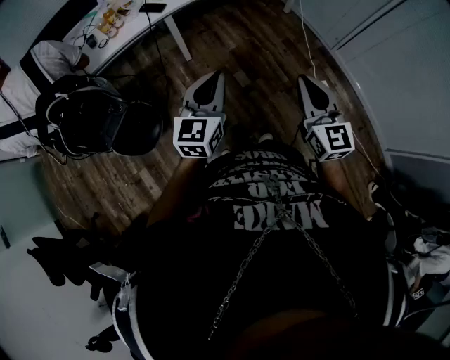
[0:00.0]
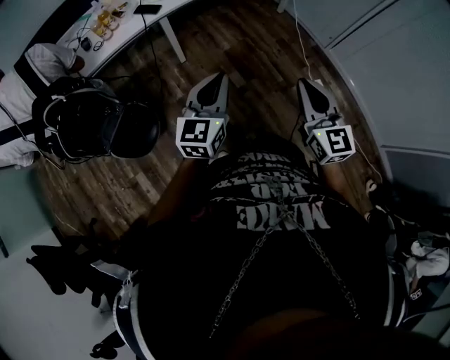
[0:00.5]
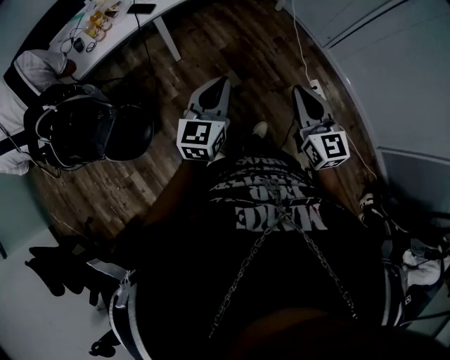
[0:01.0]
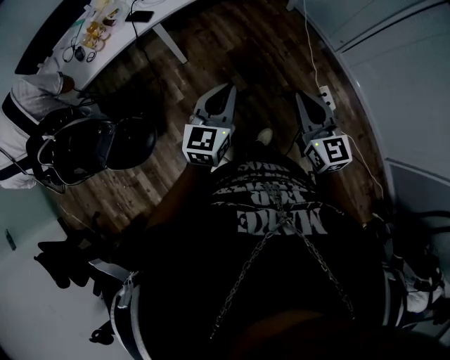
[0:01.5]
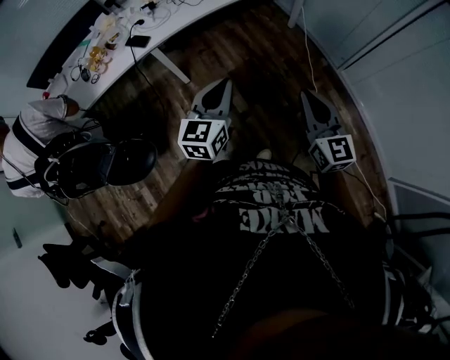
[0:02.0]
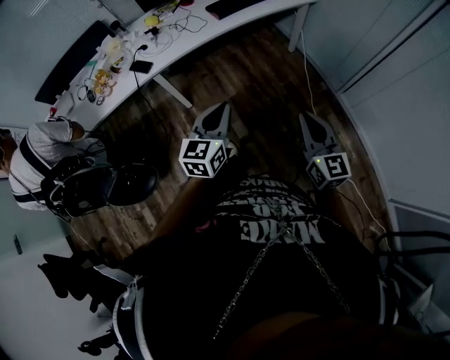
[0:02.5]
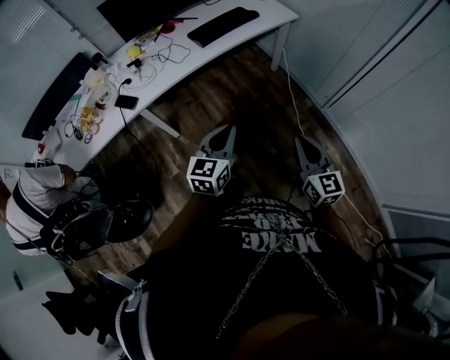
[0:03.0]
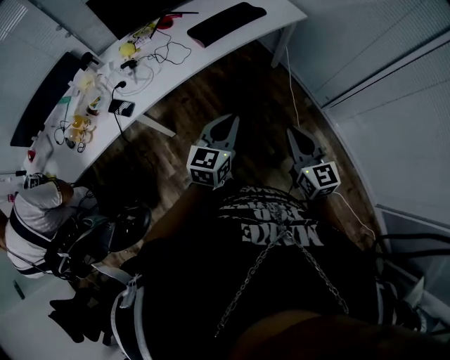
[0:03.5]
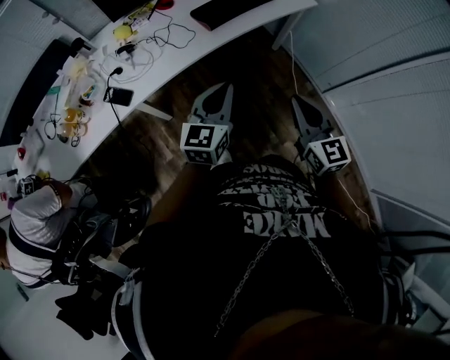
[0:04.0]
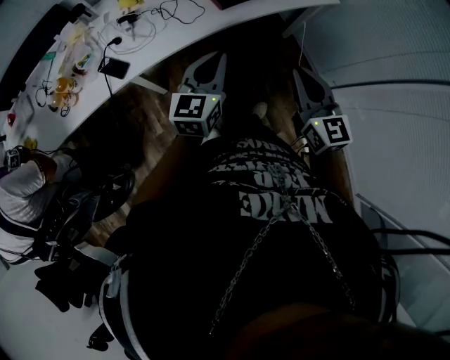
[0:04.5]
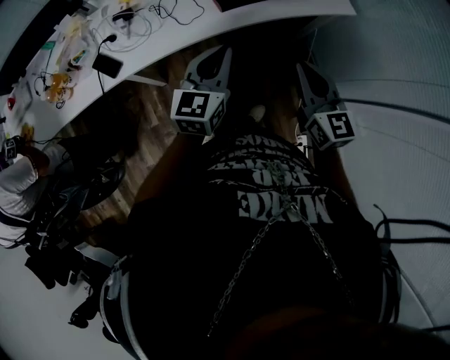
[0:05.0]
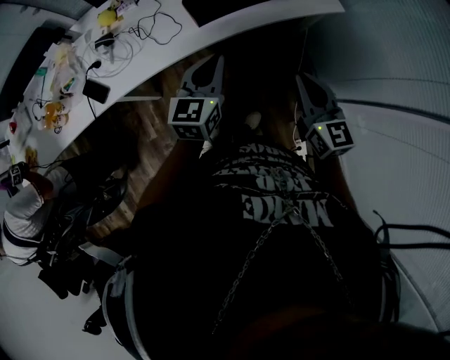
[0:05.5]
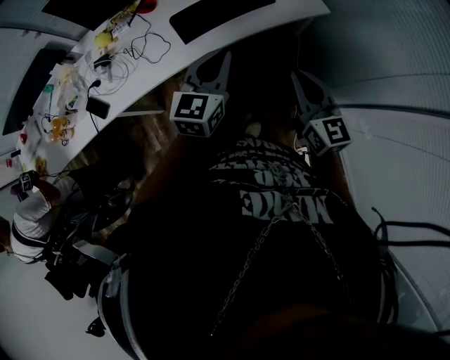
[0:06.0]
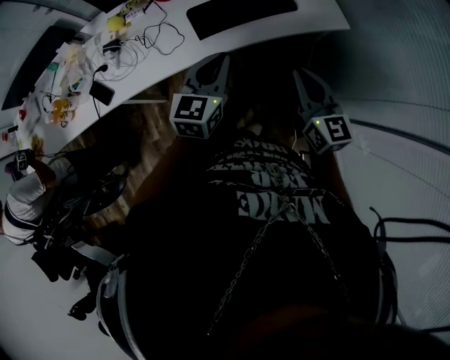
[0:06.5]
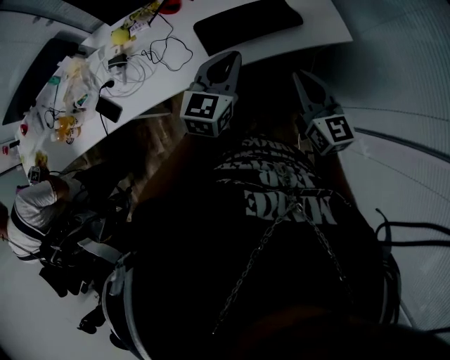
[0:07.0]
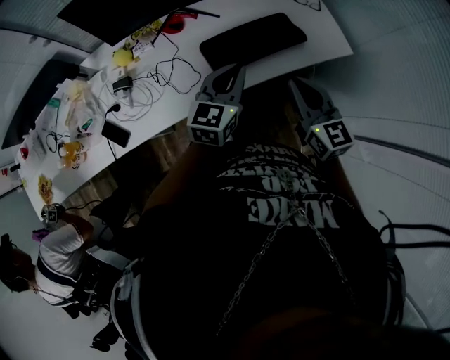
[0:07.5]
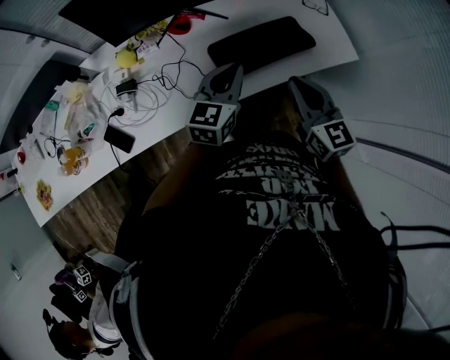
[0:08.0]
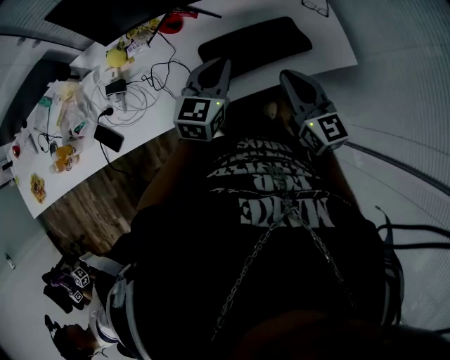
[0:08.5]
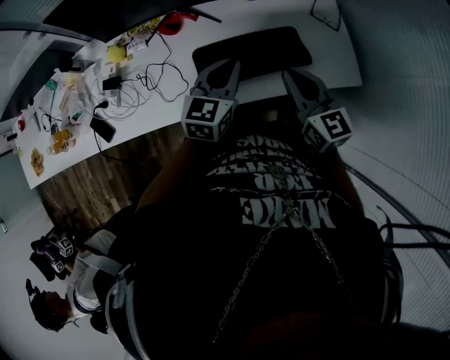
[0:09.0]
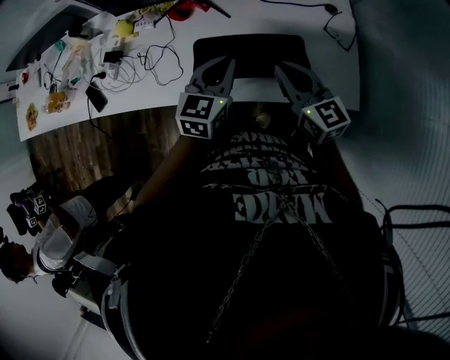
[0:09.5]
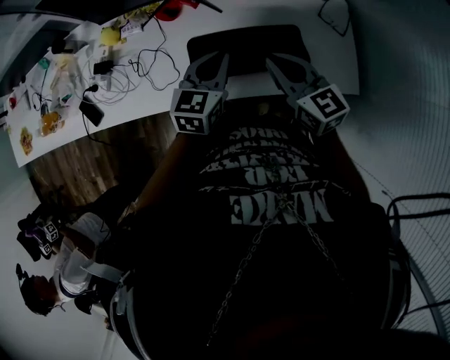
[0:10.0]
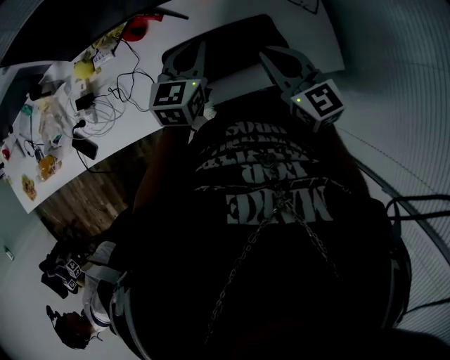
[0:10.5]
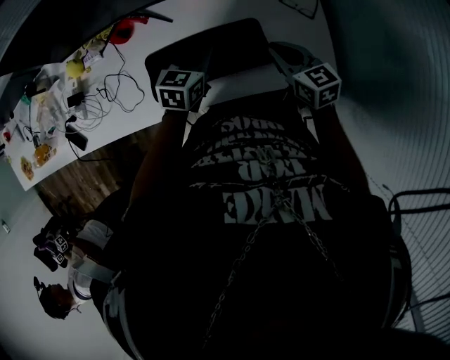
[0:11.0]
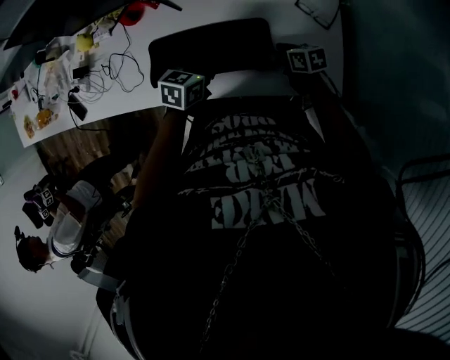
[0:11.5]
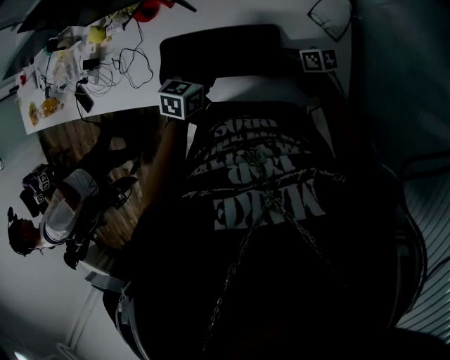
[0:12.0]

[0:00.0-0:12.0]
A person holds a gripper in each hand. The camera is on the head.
0:00.0 to 0:02.0: The grippers both shift forward and to the right by roughly 30 cm.
0:02.0 to 0:04.0: Both grippers move forward, about 30 cm.
0:04.0 to 0:06.0: Both grippers move forward and to the right, roughly 30 cm.
0:06.0 to 0:08.0: The grippers both shift forward, to the left and downward by some 30 cm.
0:08.0 to 0:10.0: The left gripper moves some 15 cm. Meanwhile the right gripper moves about 15 cm, and changes its angle by about 30 degrees.
0:10.0 to 0:12.0: The left gripper shifts some 15 cm downward and to the right, and turns by some 20 degrees. The right gripper heads downward and to the right, covering some 35 cm, changes its angle by roughly 50 degrees, and opens, then closes once more.

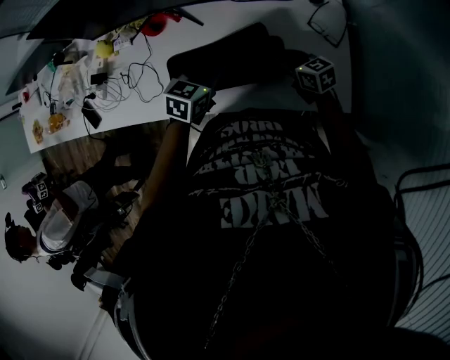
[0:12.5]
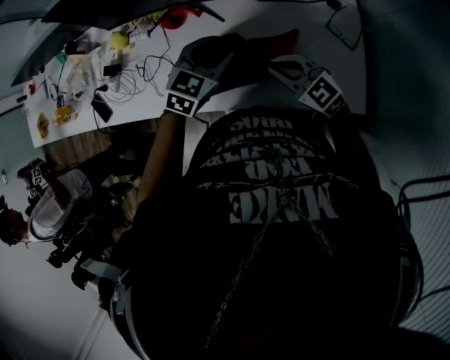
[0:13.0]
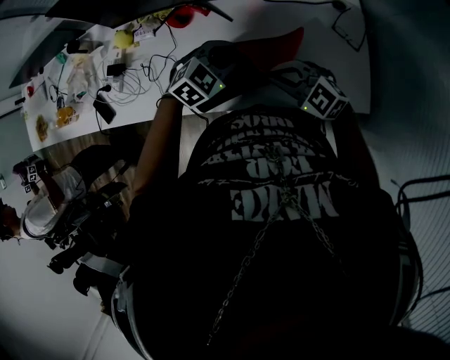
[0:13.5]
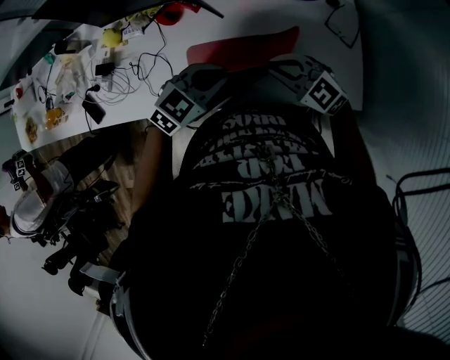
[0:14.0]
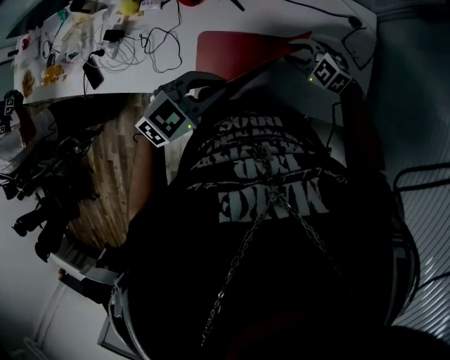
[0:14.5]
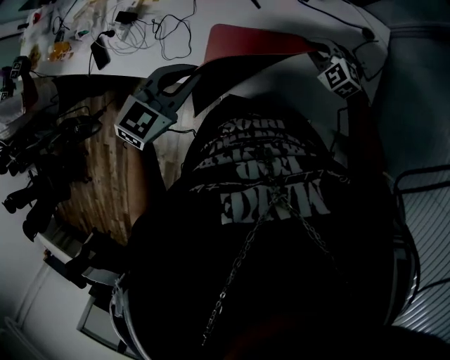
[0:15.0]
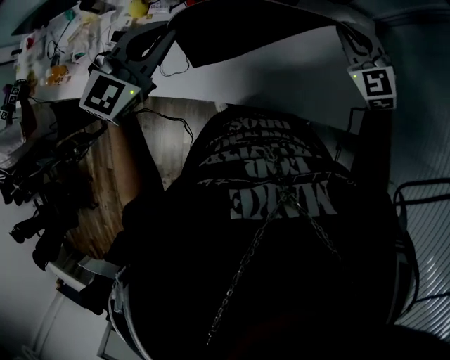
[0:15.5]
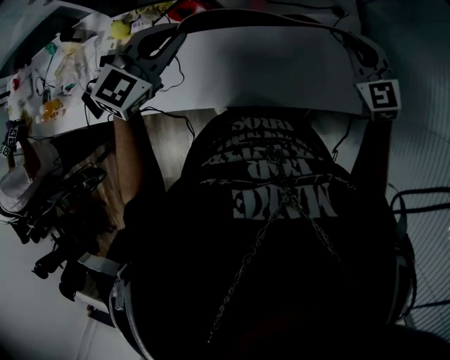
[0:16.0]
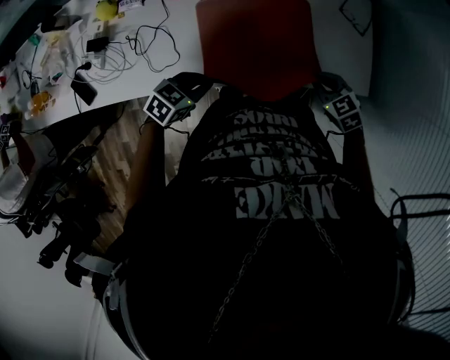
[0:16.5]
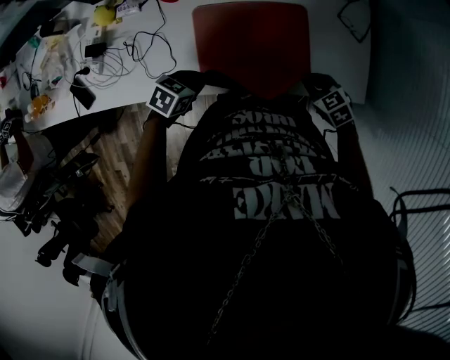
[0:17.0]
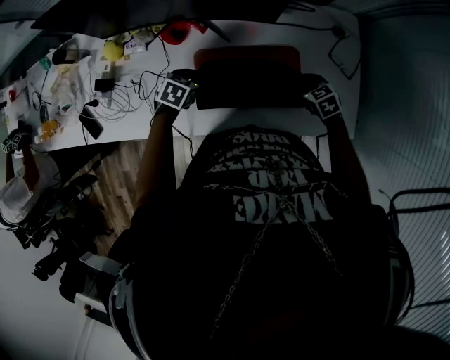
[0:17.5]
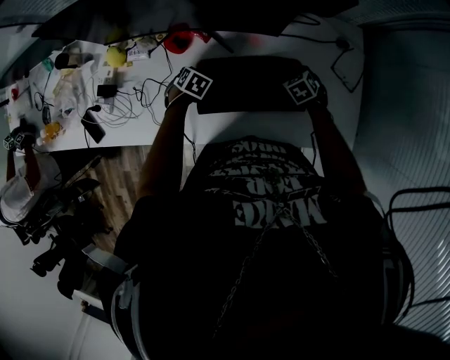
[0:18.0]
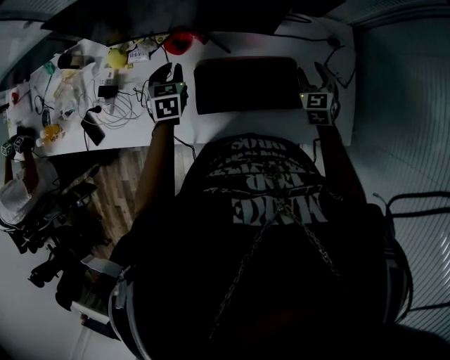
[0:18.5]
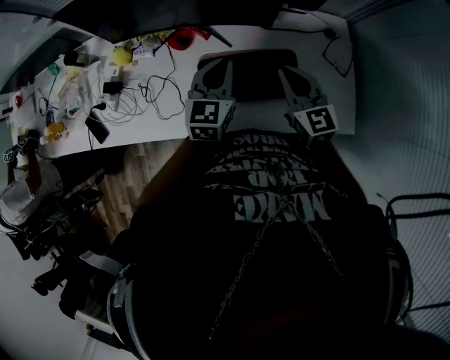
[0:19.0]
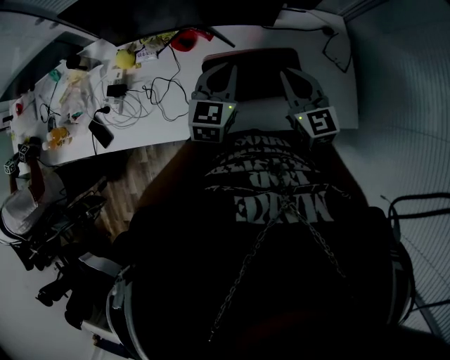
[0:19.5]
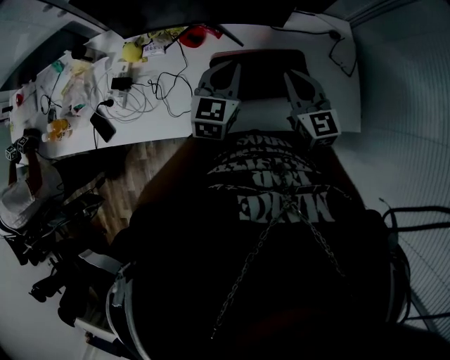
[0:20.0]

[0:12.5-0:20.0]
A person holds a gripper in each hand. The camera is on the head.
0:12.5 to 0:14.5: The left gripper swings up and down, some 10 cm each way, with 2 reversals, changes its angle by about 30 degrees, and opens, then closes once more. The right gripper reaches some 10 cm upward, then returns, twists approximately 50 degrees counterclockwise, seen from behind, and opens its fingers.
0:14.5 to 0:16.5: The right gripper moves roughly 20 cm upward and comes back, rotates approximately 40 degrees, and closes its fingers. The left gripper heads downward, covering approximately 15 cm, and changes its angle by approximately 30 degrees.
0:16.5 to 0:18.0: The right gripper moves approximately 25 cm. The left gripper shifts by about 25 cm, and tilts its fingers some 30 degrees downward.
0:18.0 to 0:20.0: Both grippers move upward, some 30 cm. The left gripper tilts its fingers approximately 60 degrees upward. Meanwhile the right gripper tips its fingers upward by approximately 50 degrees, and opens, then closes once more.

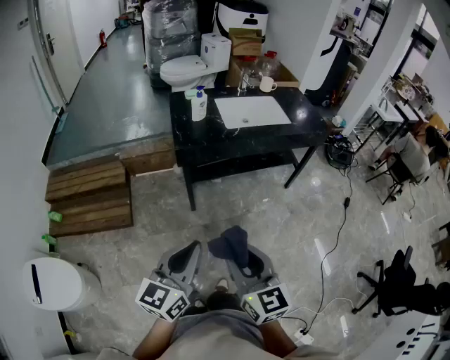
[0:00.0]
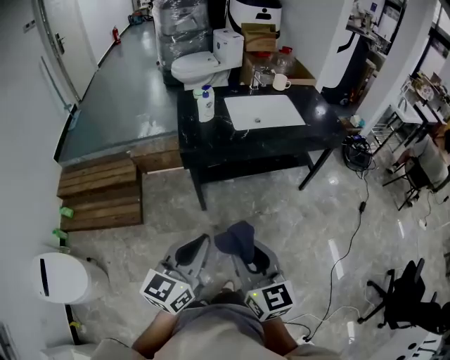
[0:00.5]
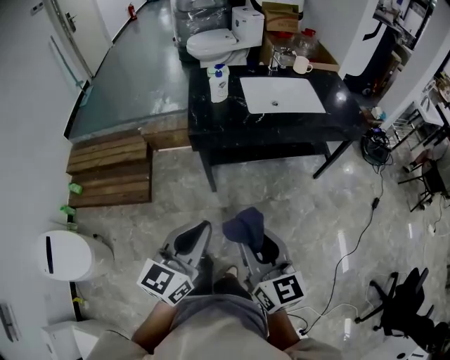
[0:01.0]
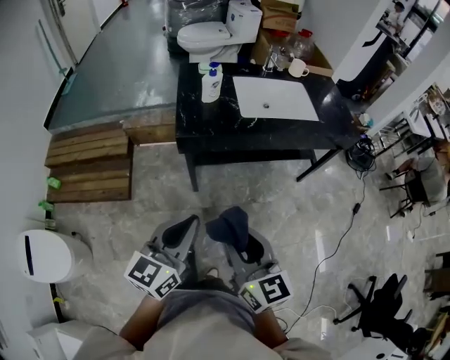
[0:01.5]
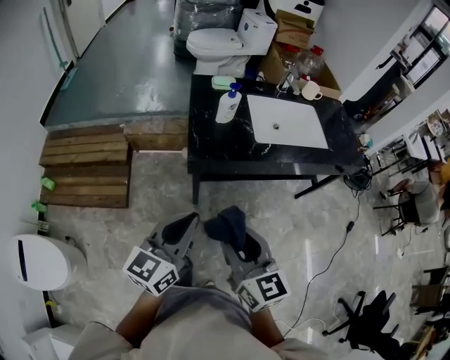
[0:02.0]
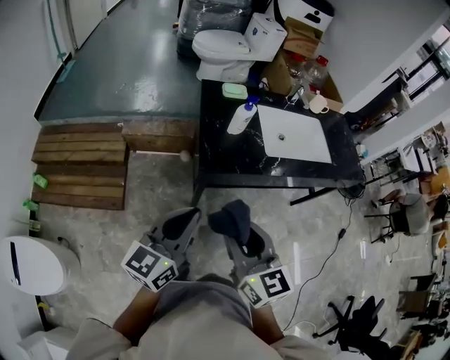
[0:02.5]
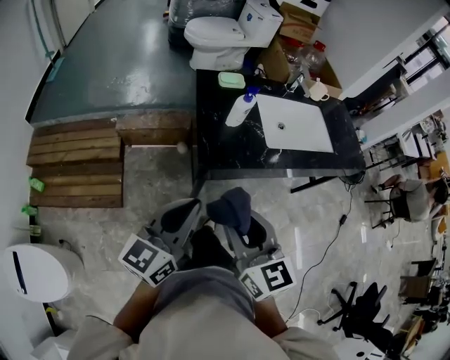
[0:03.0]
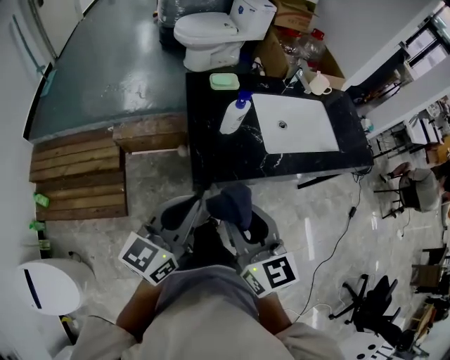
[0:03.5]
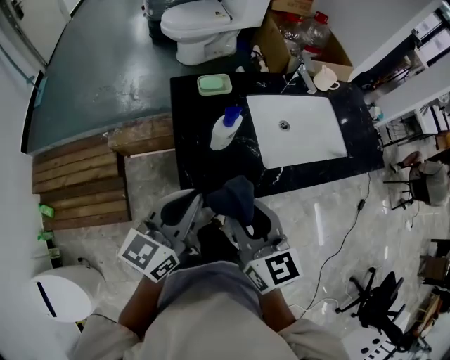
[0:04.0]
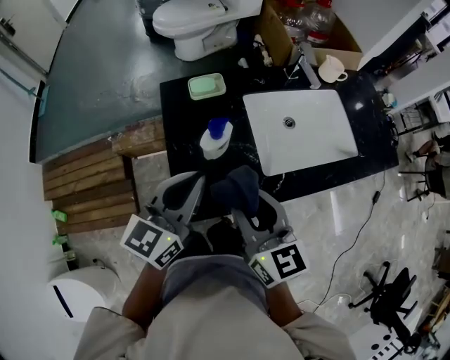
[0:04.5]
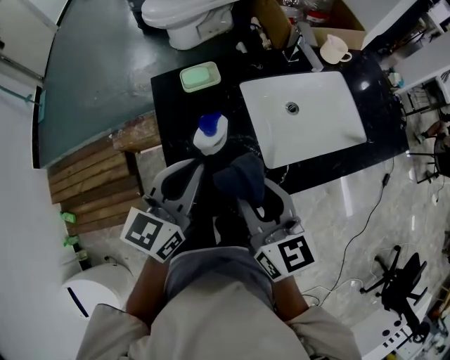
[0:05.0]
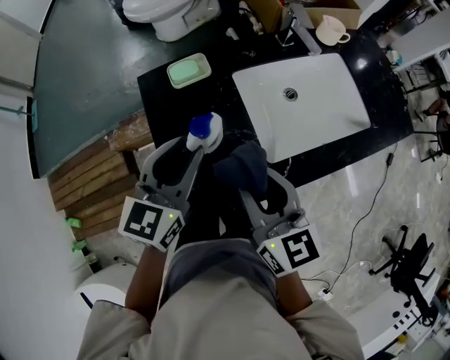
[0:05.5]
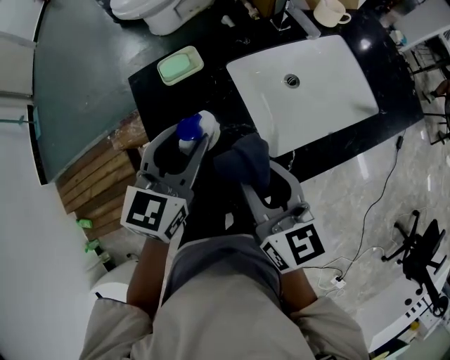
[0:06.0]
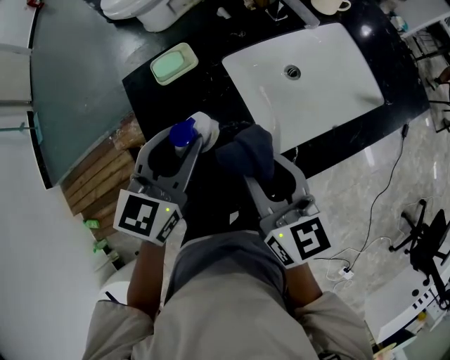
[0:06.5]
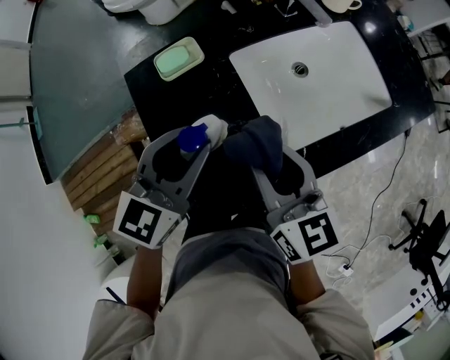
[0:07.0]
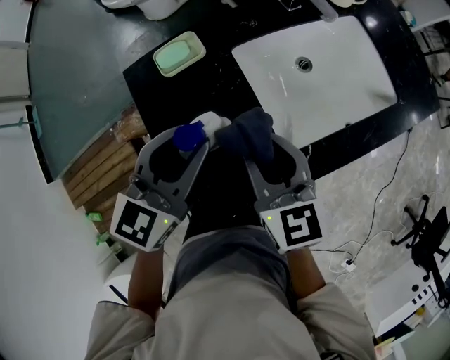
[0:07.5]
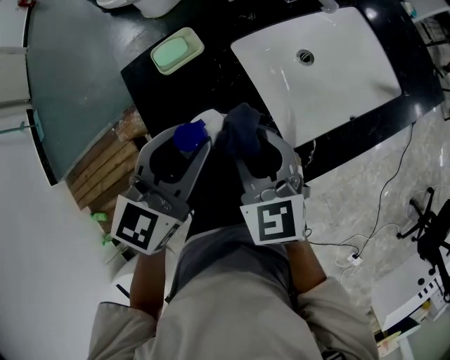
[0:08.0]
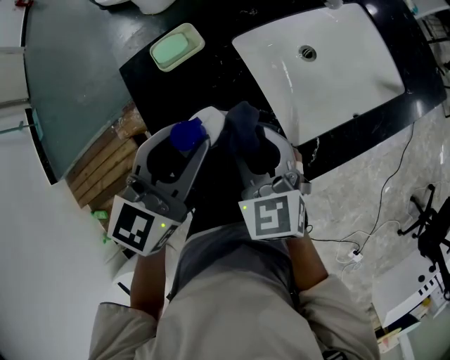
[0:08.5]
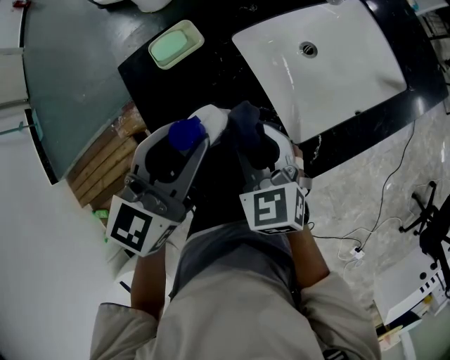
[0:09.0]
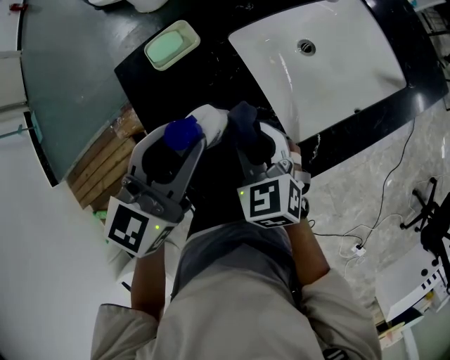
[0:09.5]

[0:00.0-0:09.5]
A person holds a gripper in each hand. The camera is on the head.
0:00.0 to 0:02.0: Both grippers move forward, some 25 cm.
0:02.0 to 0:04.0: Both grippers travel together forward, about 25 cm.
0:04.0 to 0:05.5: The right gripper heads forward and to the right, covering roughly 15 cm. Meanwhile the left gripper shifts about 15 cm forward, and opens up.
0:05.5 to 0:07.5: The right gripper travels forward and downward by about 10 cm.
0:07.5 to 0:09.5: The right gripper moves downward, approximately 10 cm, and rotates roughly 30 degrees.
